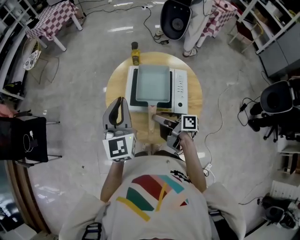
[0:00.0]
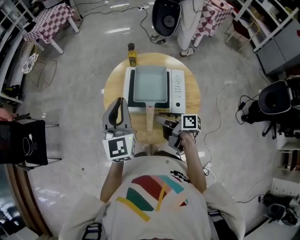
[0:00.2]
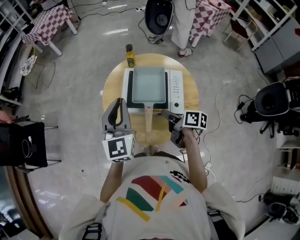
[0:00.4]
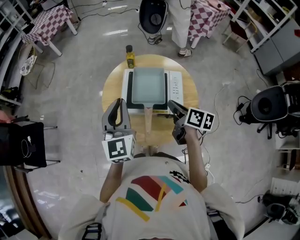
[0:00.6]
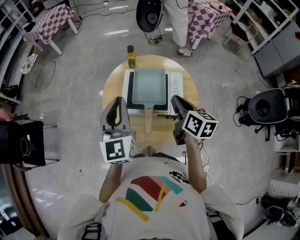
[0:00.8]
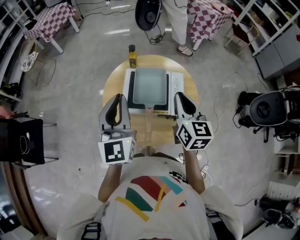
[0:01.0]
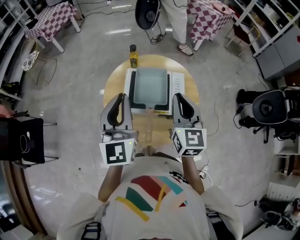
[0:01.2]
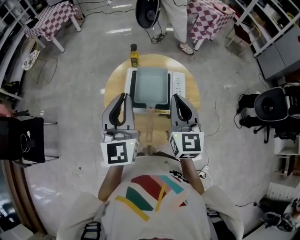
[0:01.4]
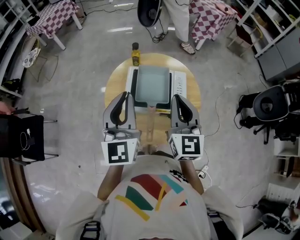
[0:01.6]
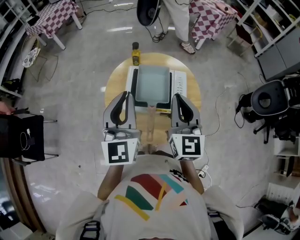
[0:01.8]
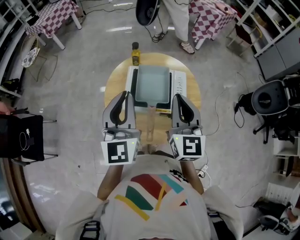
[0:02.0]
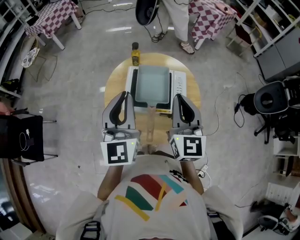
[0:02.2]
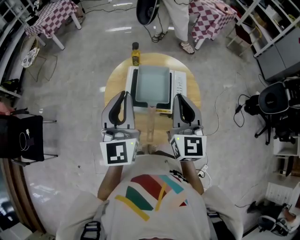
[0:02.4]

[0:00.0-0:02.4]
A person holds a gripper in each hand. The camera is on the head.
0:00.0 to 0:01.2: The left gripper is displaced upward by about 5 cm. Meanwhile the right gripper moves upward, about 20 cm, rolls counterclockwise, seen from behind, by some 80 degrees, and closes its fingers.
0:01.2 to 0:02.4: There are only small adjustments of the grippers.

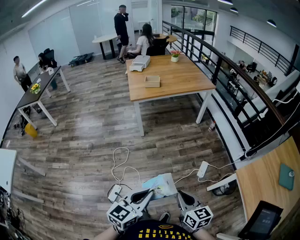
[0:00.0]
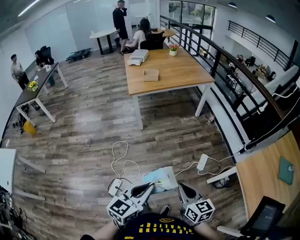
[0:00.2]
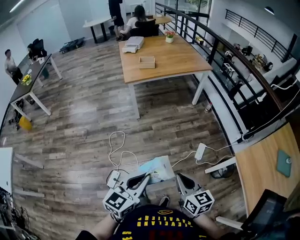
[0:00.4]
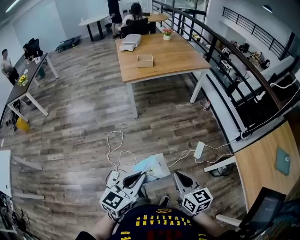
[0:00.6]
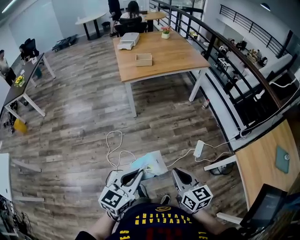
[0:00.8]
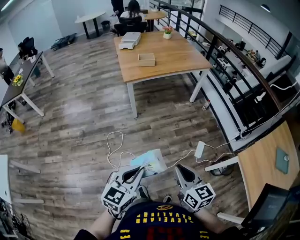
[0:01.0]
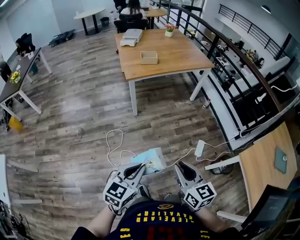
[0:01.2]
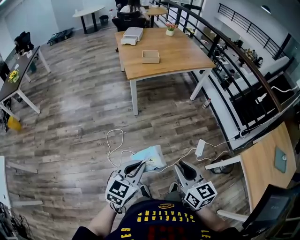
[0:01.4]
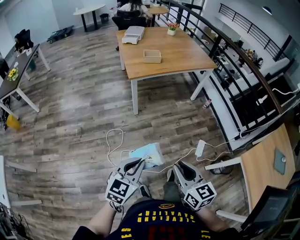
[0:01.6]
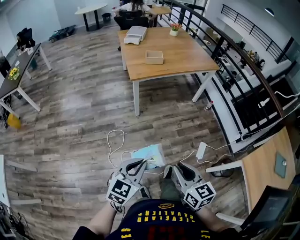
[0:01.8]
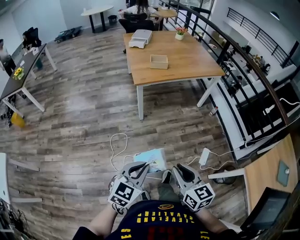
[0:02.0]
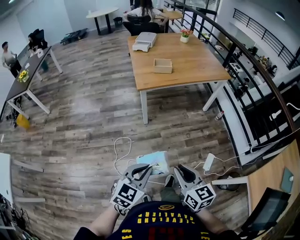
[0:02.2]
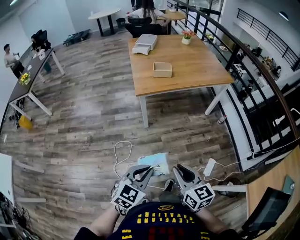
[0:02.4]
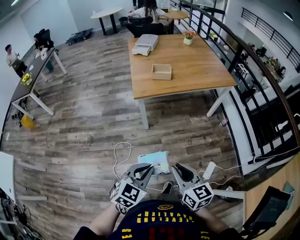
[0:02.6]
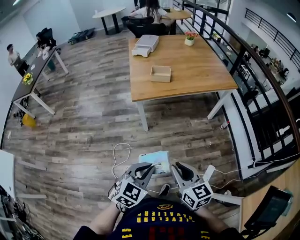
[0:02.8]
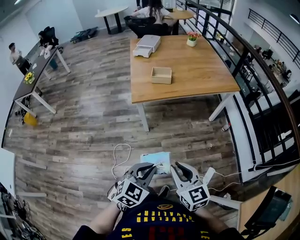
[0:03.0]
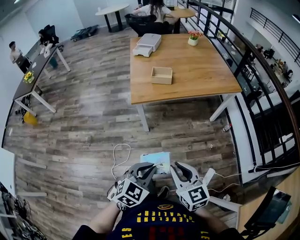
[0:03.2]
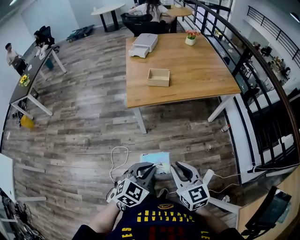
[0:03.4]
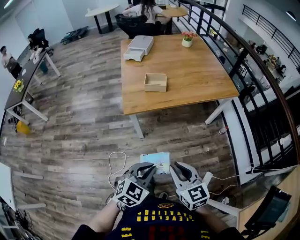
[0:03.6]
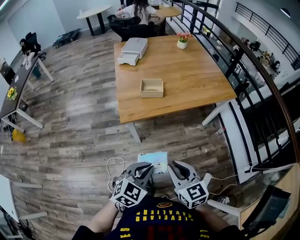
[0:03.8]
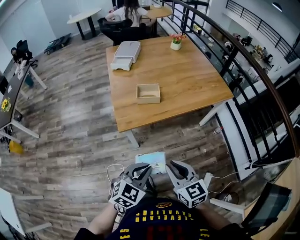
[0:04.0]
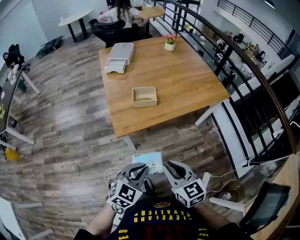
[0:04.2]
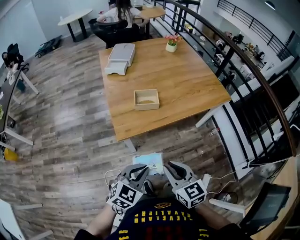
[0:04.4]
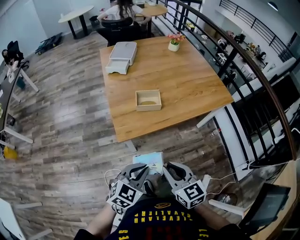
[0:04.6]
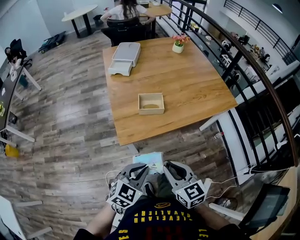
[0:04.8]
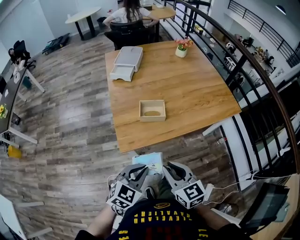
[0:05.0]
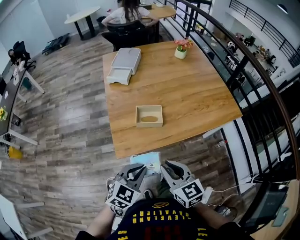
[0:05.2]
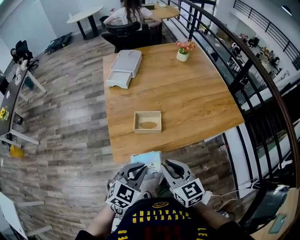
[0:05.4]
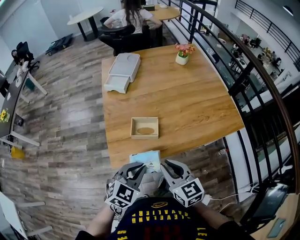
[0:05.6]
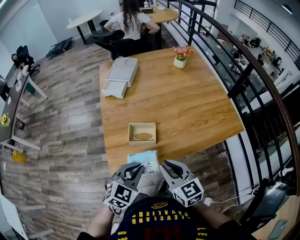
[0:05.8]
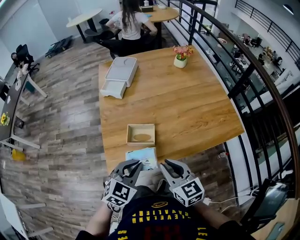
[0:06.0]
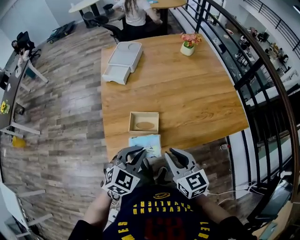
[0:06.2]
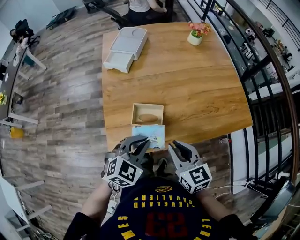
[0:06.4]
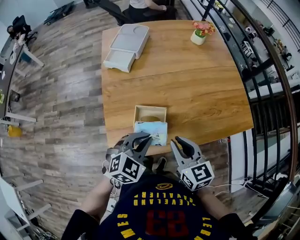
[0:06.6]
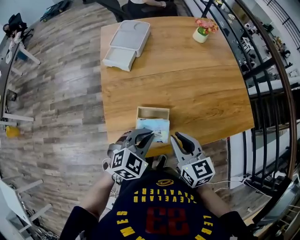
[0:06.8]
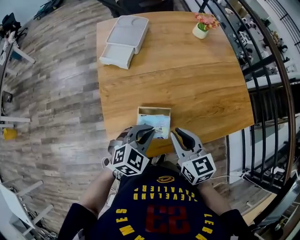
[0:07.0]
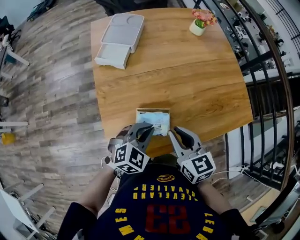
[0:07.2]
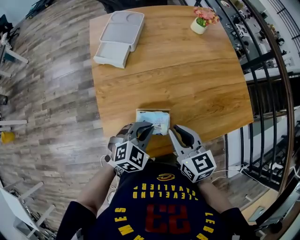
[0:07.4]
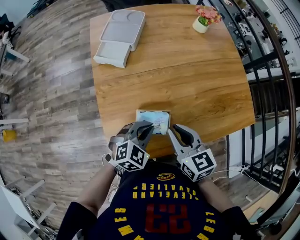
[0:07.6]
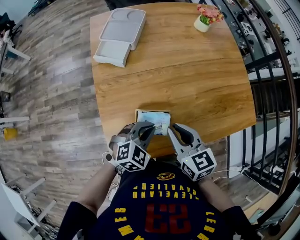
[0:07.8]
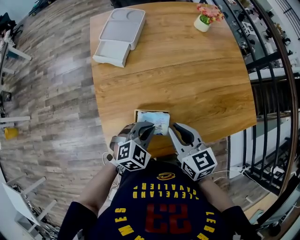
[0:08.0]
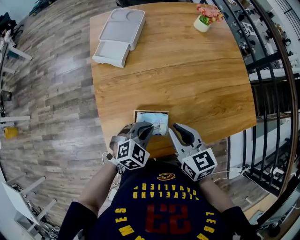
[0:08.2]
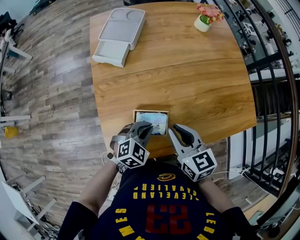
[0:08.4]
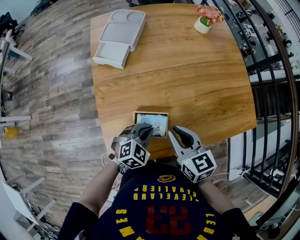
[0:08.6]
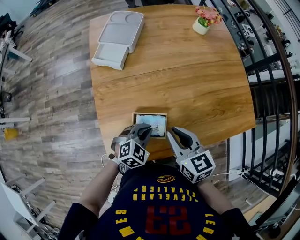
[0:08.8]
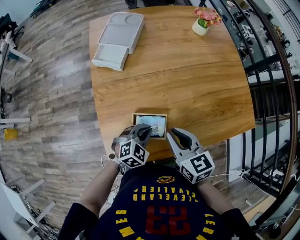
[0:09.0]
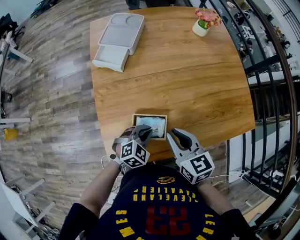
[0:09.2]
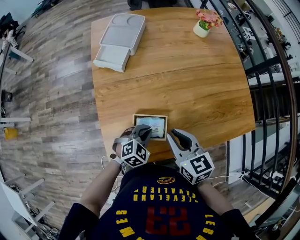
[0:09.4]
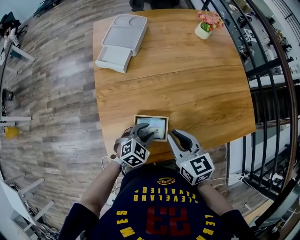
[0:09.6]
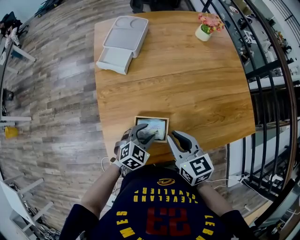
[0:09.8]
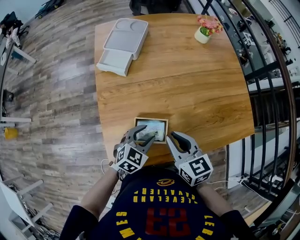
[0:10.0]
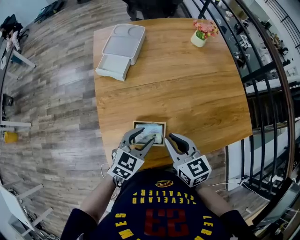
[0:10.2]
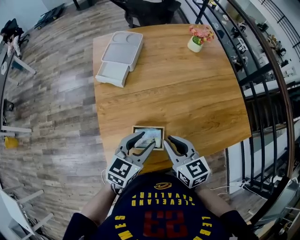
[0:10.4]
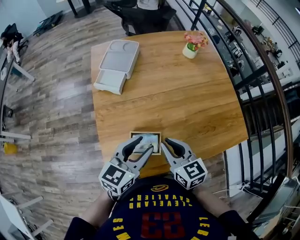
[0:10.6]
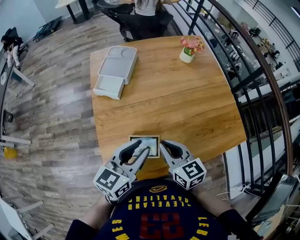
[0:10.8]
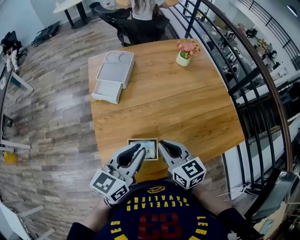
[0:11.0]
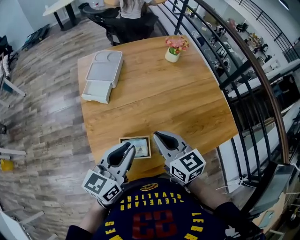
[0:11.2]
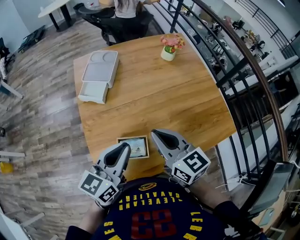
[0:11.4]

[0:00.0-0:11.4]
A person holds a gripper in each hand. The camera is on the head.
0:00.0 to 0:01.4: Both grippers travel together to the left and forward, approximately 20 cm.
0:01.4 to 0:02.8: The right gripper travels forward by approximately 25 cm, while the left gripper goes approximately 25 cm forward and to the right.
0:02.8 to 0:04.2: The grippers both shift forward by about 25 cm.
0:04.2 to 0:05.6: The two grippers go approximately 25 cm forward.
0:05.6 to 0:07.2: Both grippers travel together forward, about 20 cm.
0:07.2 to 0:08.6: The left gripper goes some 5 cm downward.
0:08.6 to 0:10.0: The left gripper opens up.
0:10.0 to 0:11.4: The left gripper moves upward, roughly 20 cm, tips its fingers upward by some 30 degrees, and closes. The right gripper travels upward by about 10 cm.

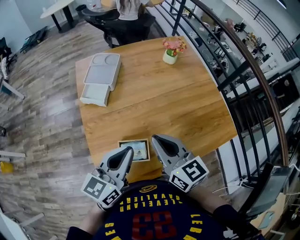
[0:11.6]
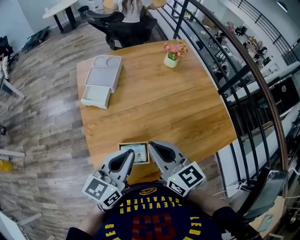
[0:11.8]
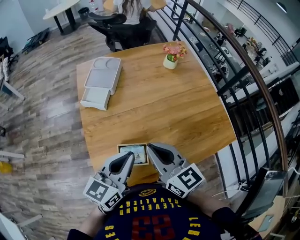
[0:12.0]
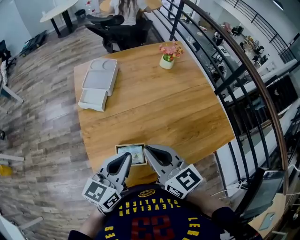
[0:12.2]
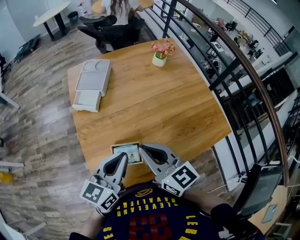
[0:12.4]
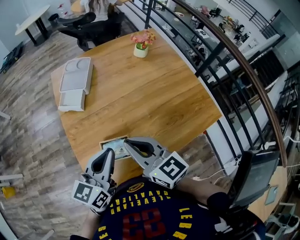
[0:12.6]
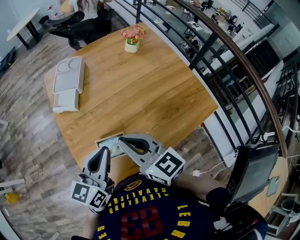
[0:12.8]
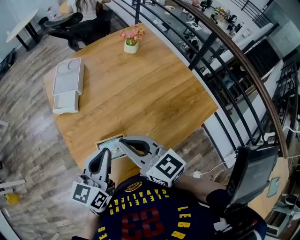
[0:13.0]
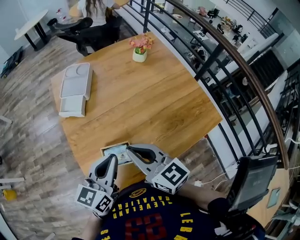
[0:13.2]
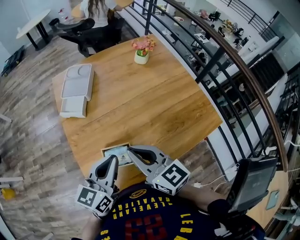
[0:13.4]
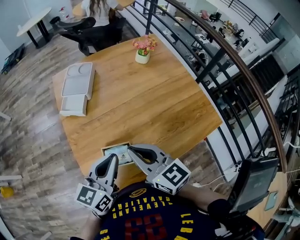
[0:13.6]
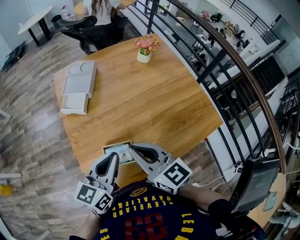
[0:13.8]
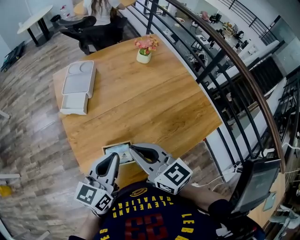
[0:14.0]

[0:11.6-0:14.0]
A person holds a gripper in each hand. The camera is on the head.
0:11.6 to 0:12.8: The grippers move only a little.
0:12.8 to 0:14.0: The two grippers keep their place.

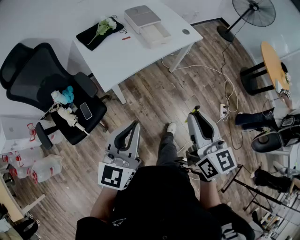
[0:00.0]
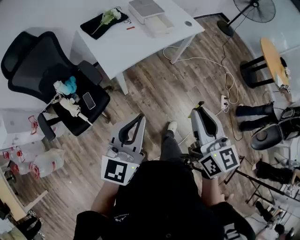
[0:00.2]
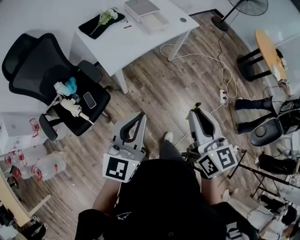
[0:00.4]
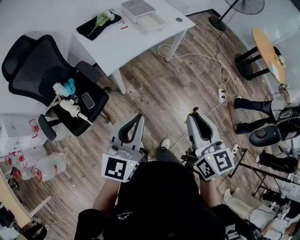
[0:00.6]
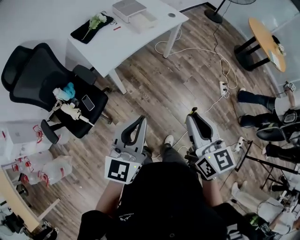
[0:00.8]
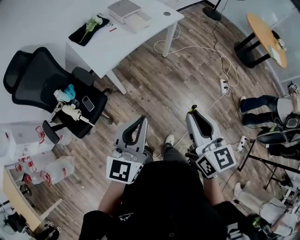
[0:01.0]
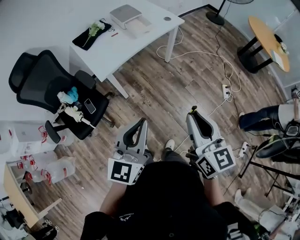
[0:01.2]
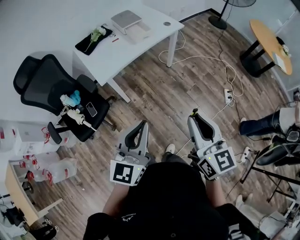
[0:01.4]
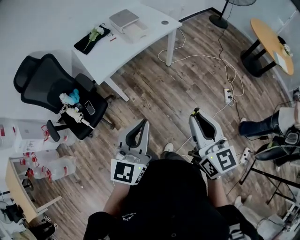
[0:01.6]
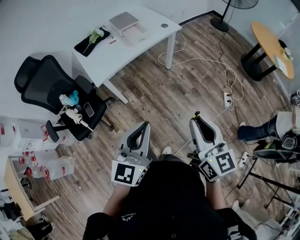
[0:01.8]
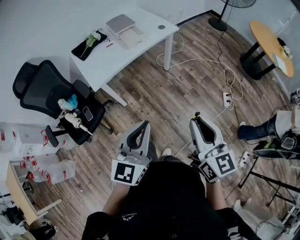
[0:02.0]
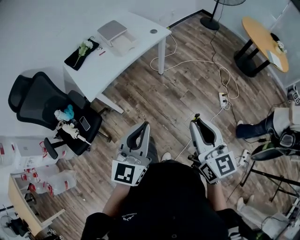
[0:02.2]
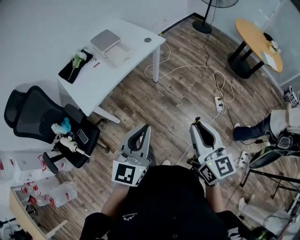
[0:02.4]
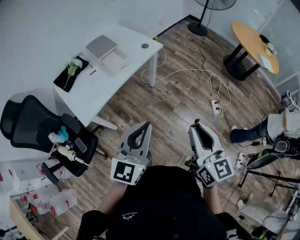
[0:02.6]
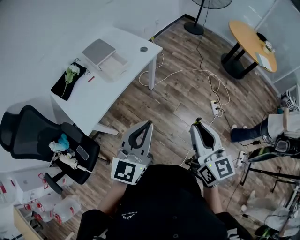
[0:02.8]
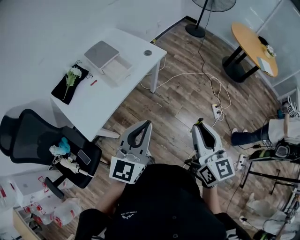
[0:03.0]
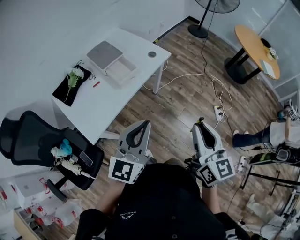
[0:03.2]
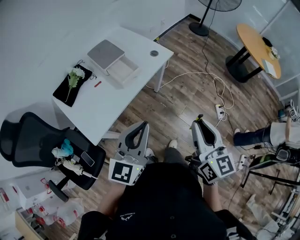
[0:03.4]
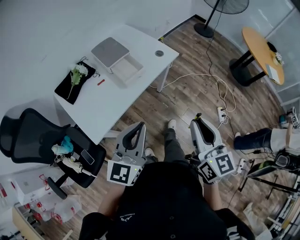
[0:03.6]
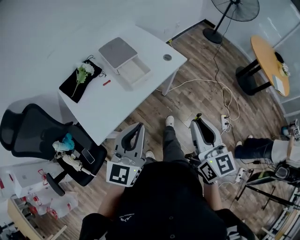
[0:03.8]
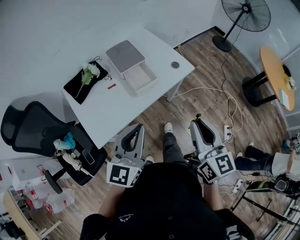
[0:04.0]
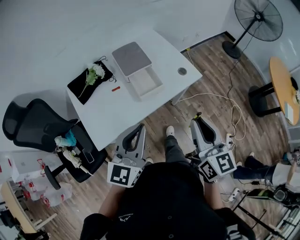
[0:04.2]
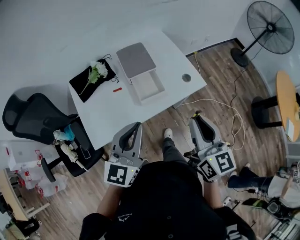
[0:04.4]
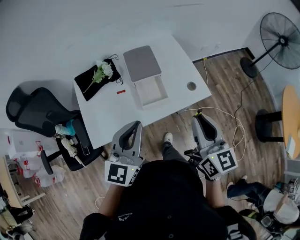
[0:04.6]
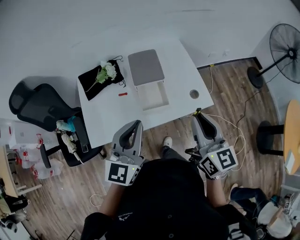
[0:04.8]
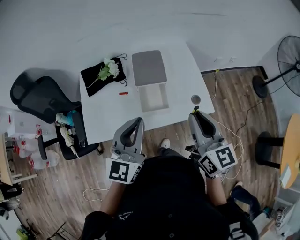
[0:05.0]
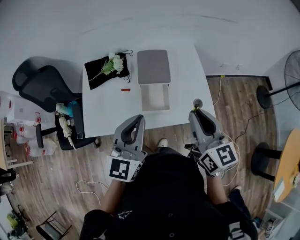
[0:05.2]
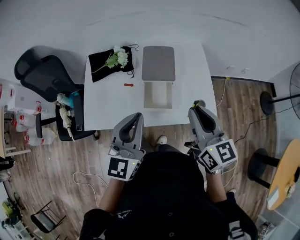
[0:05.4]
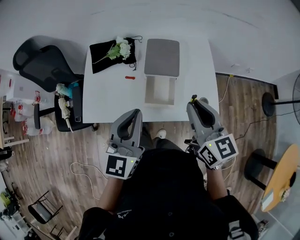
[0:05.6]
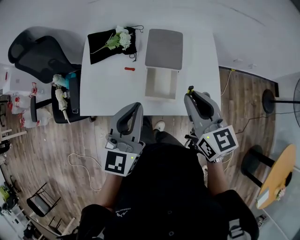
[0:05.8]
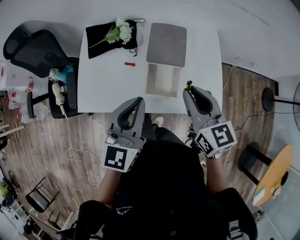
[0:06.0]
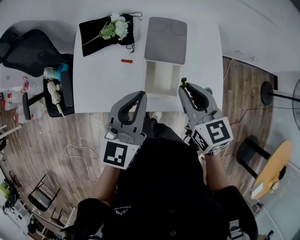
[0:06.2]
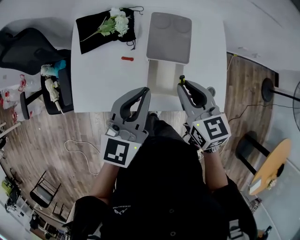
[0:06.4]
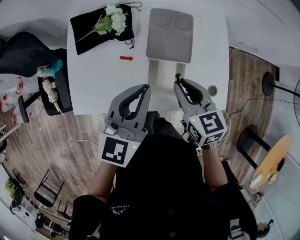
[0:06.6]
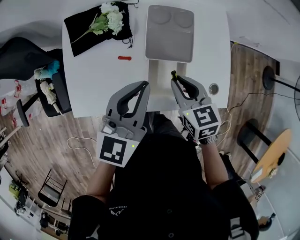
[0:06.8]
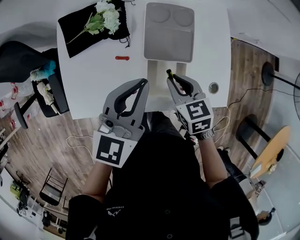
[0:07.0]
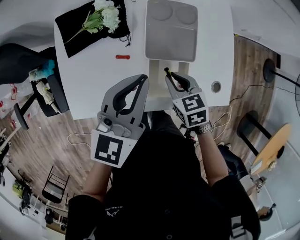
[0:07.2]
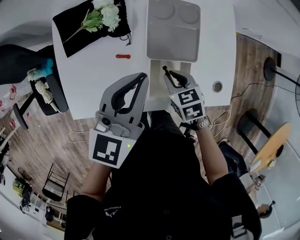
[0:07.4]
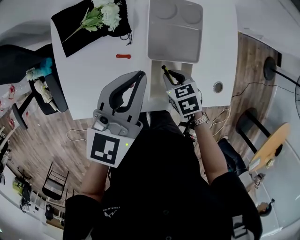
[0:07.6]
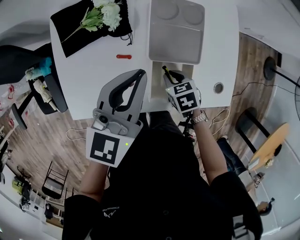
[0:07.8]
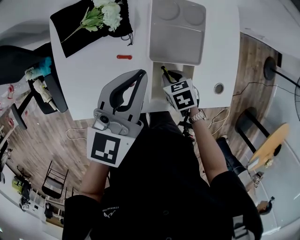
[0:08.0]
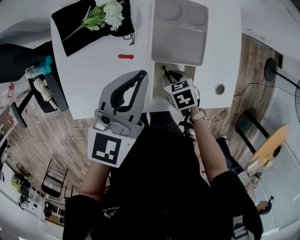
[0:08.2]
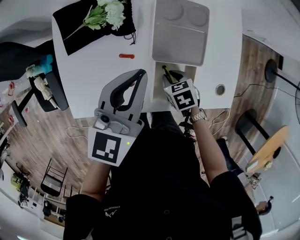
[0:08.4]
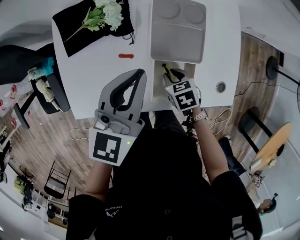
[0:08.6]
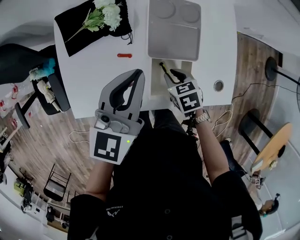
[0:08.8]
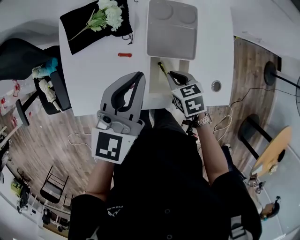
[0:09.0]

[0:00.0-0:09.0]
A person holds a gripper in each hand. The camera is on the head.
0:00.0 to 0:01.6: The left gripper goes about 20 cm to the right and backward, while the right gripper travels backward and to the right by some 20 cm.
0:01.6 to 0:03.0: The two grippers go roughly 30 cm forward.
0:03.0 to 0:04.4: The left gripper shifts by about 25 cm, and changes its angle by about 30 degrees. Meanwhile the right gripper moves approximately 30 cm, and rotates approximately 30 degrees.
0:04.4 to 0:06.0: The left gripper changes place by approximately 15 cm, and rotates roughly 30 degrees, while the right gripper shifts by roughly 25 cm, and swivels some 40 degrees.
0:06.0 to 0:07.6: The left gripper shifts roughly 20 cm forward and downward, while the right gripper travels downward by approximately 30 cm, and angles its fingers downward, by roughly 40 degrees.
0:07.6 to 0:09.0: The grippers make only small movements.
